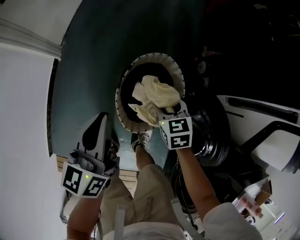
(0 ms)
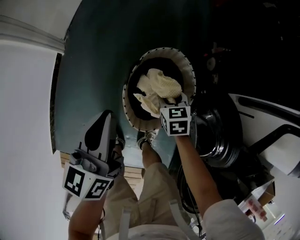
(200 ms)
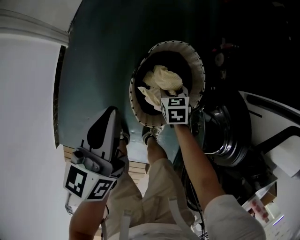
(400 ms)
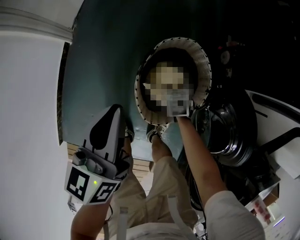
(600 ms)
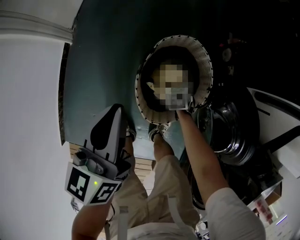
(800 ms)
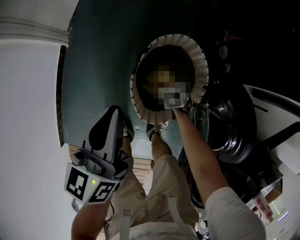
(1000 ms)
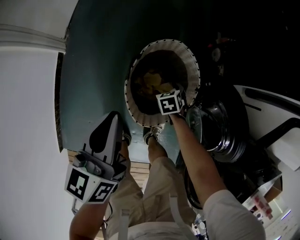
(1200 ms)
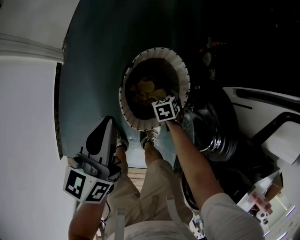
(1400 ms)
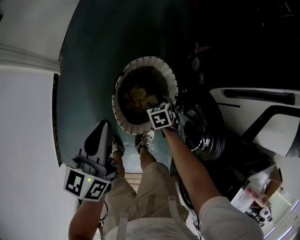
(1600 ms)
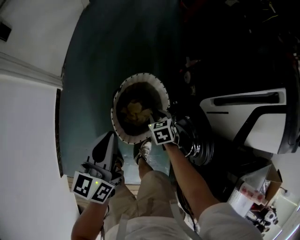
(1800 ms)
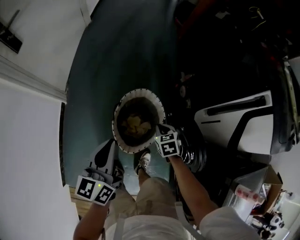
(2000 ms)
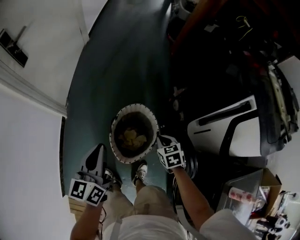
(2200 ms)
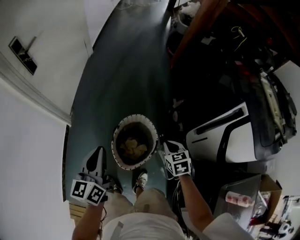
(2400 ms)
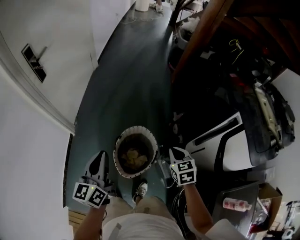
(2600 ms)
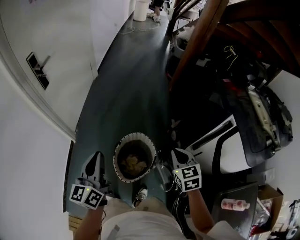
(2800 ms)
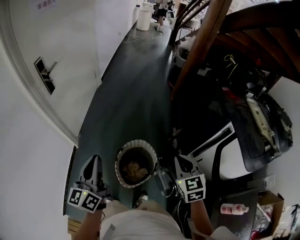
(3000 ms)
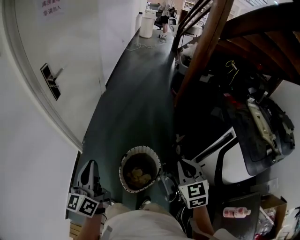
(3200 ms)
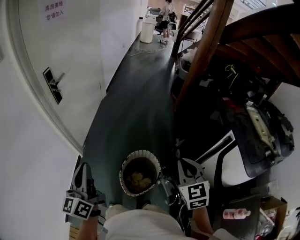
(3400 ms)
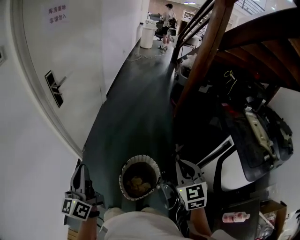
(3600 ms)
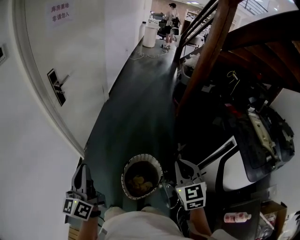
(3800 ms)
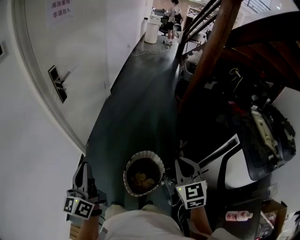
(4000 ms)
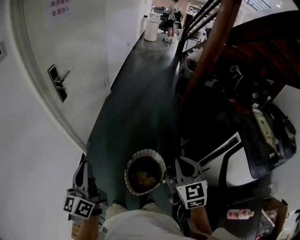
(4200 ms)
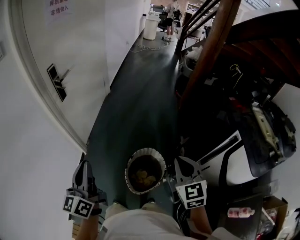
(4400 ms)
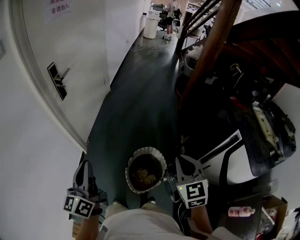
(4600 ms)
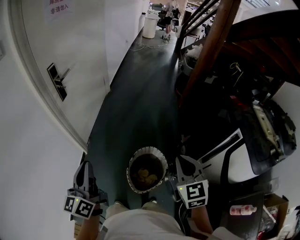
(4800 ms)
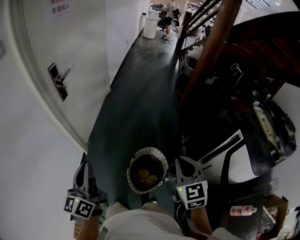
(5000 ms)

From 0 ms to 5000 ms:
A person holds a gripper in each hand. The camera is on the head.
From 0 ms to 1600 ms: The right gripper moves downward, about 10 cm.
From 1600 ms to 3400 ms: The right gripper heads upward, covering about 60 cm, tips its fingers upward by some 50 degrees, and closes its fingers, while the left gripper shifts some 35 cm upward, and changes its angle by approximately 30 degrees.
From 3400 ms to 5000 ms: The two grippers go some 5 cm to the left.

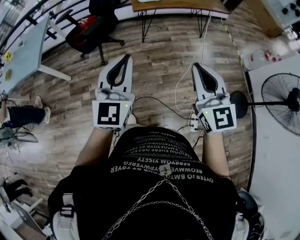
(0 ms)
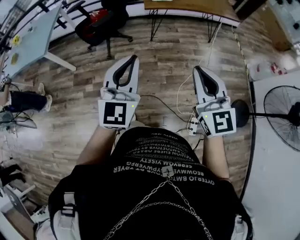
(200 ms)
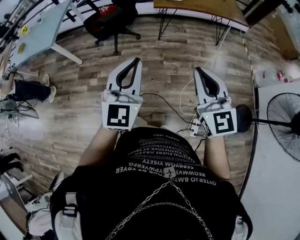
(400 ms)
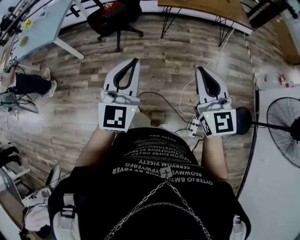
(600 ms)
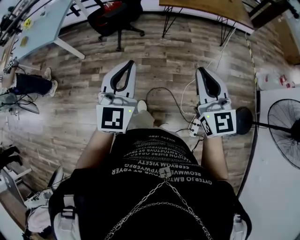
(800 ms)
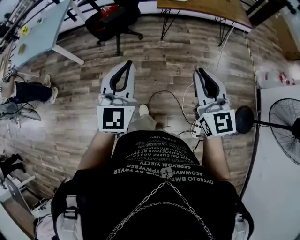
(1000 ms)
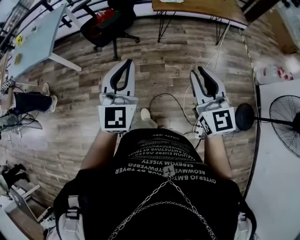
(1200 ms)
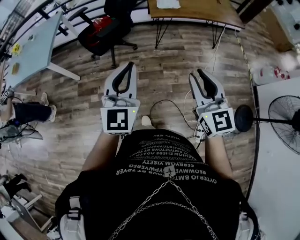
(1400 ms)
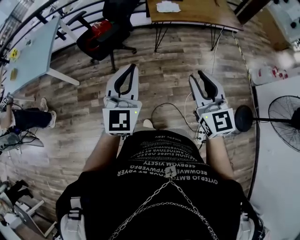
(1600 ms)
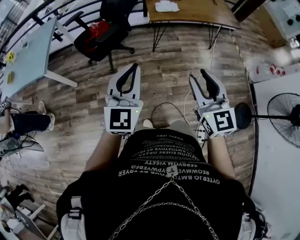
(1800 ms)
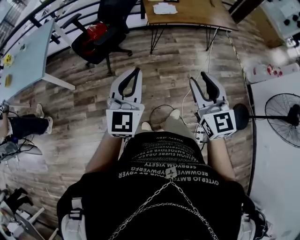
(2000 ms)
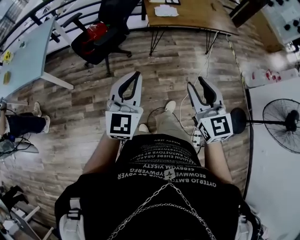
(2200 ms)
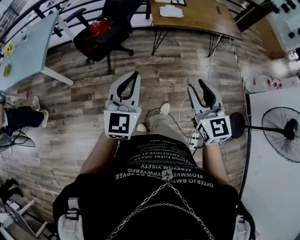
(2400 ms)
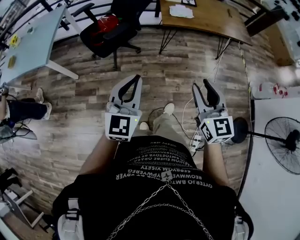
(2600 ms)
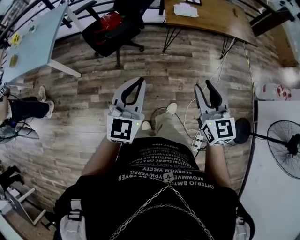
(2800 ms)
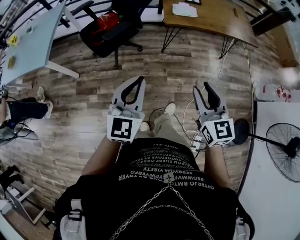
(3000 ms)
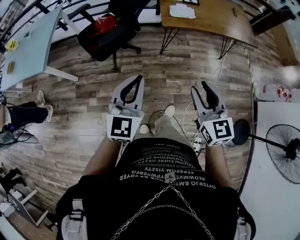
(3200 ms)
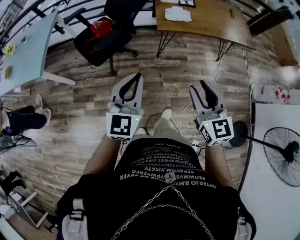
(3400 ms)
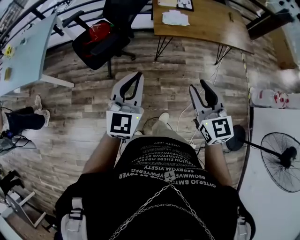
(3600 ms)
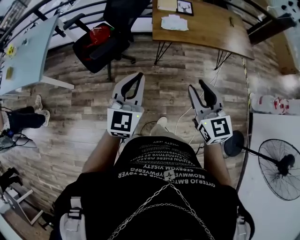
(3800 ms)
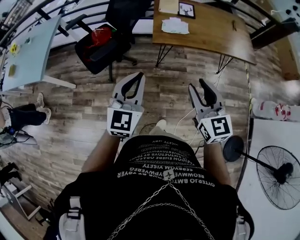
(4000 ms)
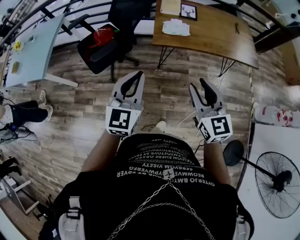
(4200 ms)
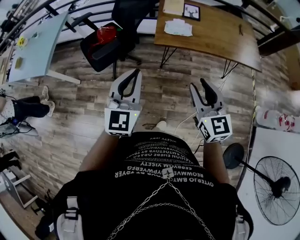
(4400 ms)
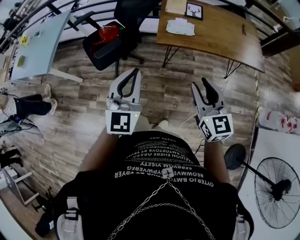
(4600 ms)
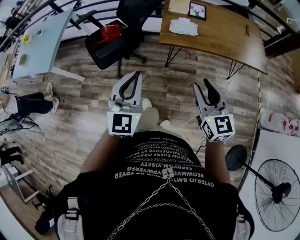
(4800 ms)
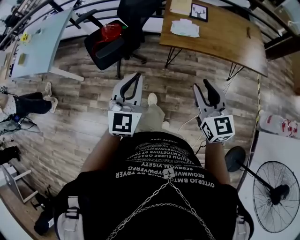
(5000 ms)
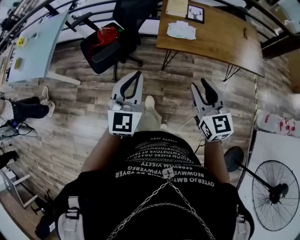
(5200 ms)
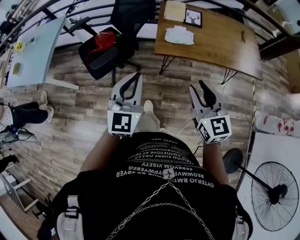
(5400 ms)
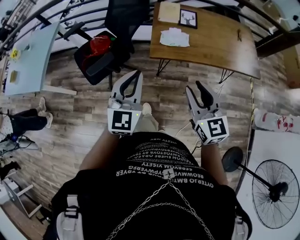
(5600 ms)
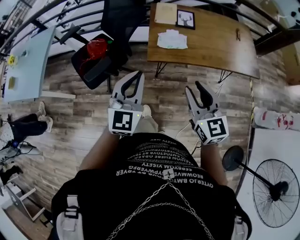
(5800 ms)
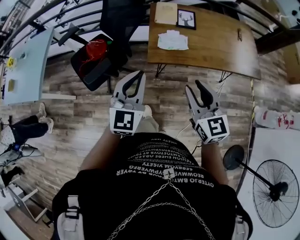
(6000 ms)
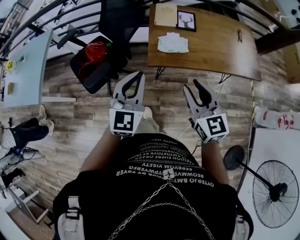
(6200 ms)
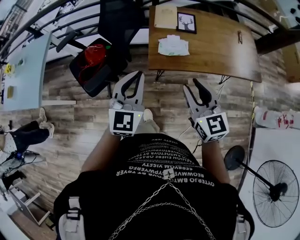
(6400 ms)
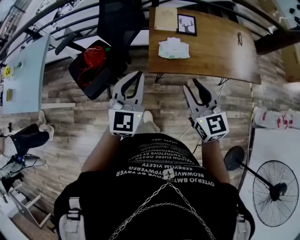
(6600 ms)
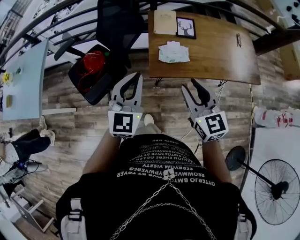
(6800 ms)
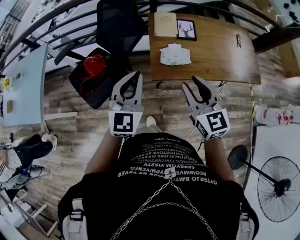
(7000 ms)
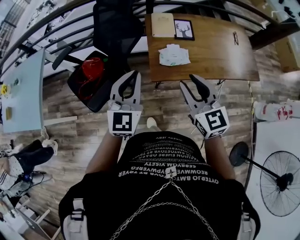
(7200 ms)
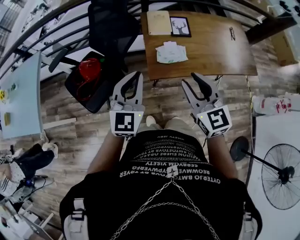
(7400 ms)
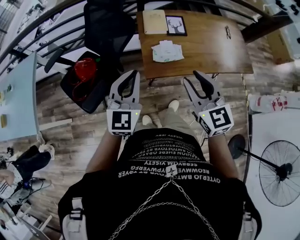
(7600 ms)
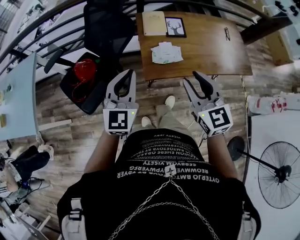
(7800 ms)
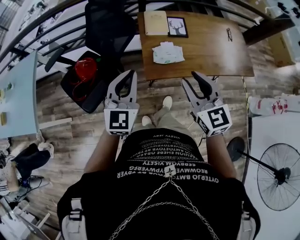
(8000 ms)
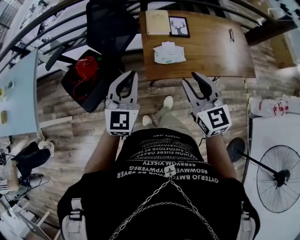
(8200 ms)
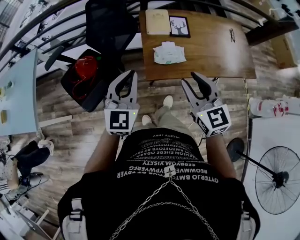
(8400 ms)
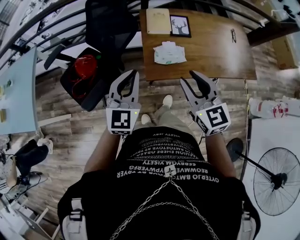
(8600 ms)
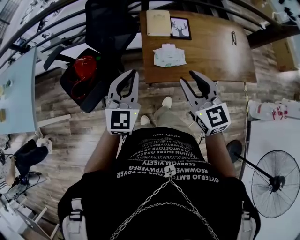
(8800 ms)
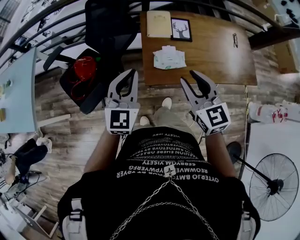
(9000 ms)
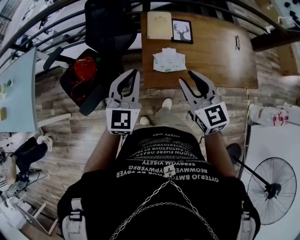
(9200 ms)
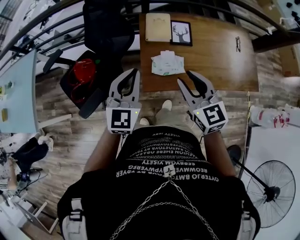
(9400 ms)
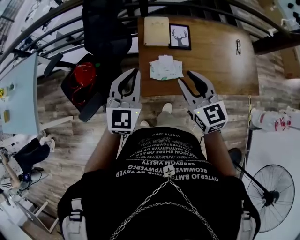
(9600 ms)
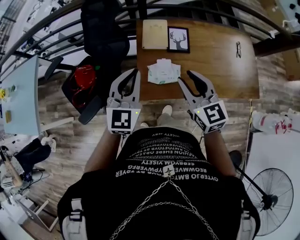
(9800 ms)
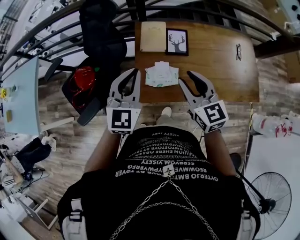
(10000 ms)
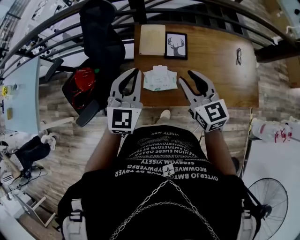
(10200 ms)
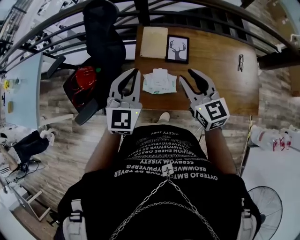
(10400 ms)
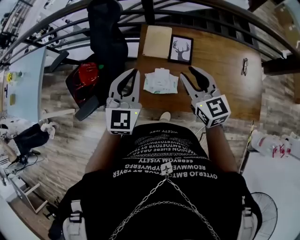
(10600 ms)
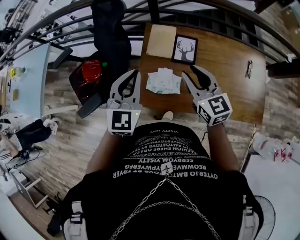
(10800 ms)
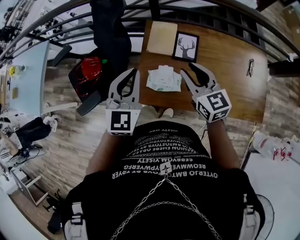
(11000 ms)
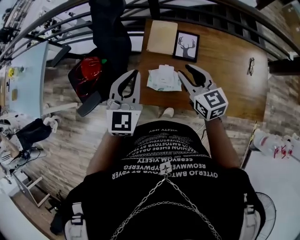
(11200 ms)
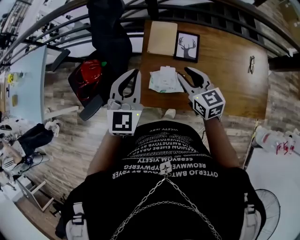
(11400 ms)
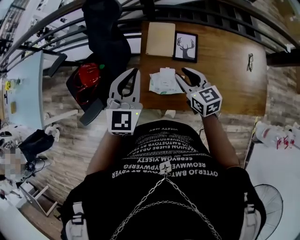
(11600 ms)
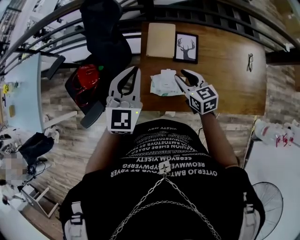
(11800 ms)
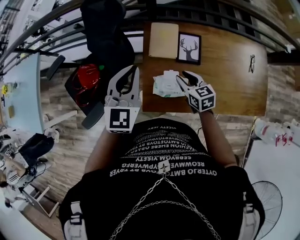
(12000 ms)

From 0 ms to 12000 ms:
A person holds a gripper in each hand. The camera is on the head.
From 0 ms to 1600 ms: The grippers both shift forward and to the left by roughly 15 cm. The right gripper opens its fingers.
From 1600 ms to 3000 ms: The grippers both shift forward and downward by roughly 10 cm.
From 3000 ms to 4400 ms: The two grippers go roughly 25 cm forward and to the right.
From 4400 ms to 6000 ms: Both grippers move forward, roughly 15 cm.
From 6000 ms to 7600 ms: Both grippers travel together forward and to the left, approximately 15 cm.
From 7600 ms to 9000 ms: Both grippers move forward, about 5 cm.
From 9000 ms to 10400 ms: The left gripper goes some 20 cm to the right and forward, while the right gripper travels forward and to the right by about 20 cm.
From 10400 ms to 12000 ms: The right gripper travels downward and forward by some 20 cm, and changes its angle by roughly 20 degrees; the left gripper moves forward, roughly 10 cm.

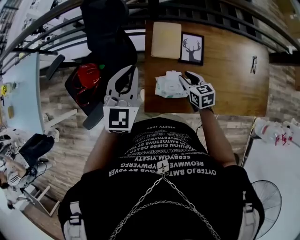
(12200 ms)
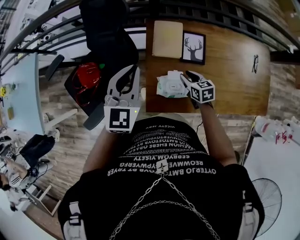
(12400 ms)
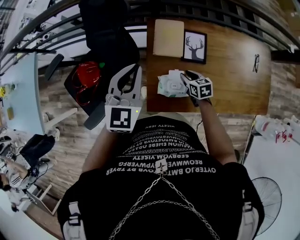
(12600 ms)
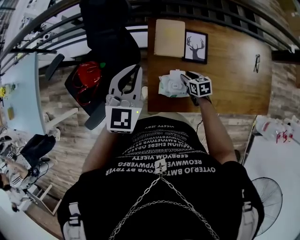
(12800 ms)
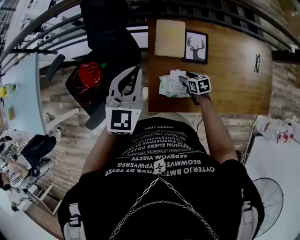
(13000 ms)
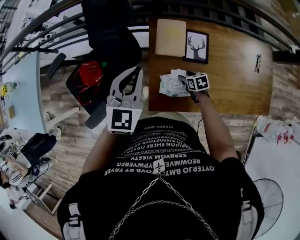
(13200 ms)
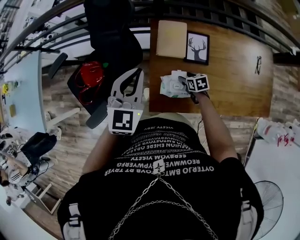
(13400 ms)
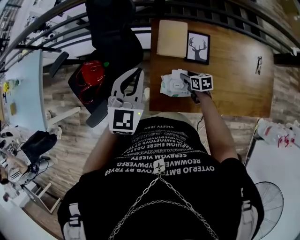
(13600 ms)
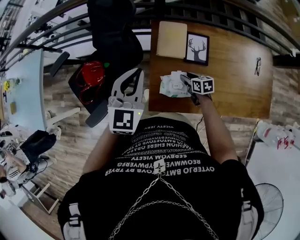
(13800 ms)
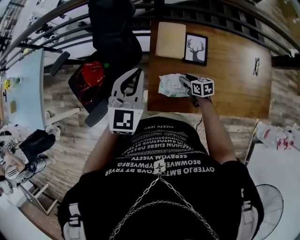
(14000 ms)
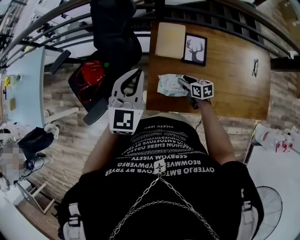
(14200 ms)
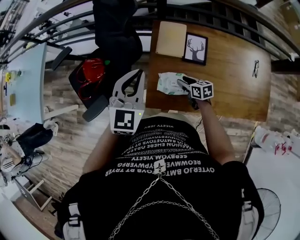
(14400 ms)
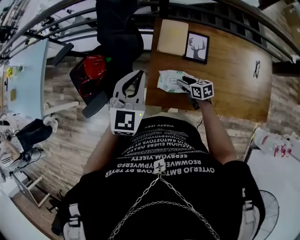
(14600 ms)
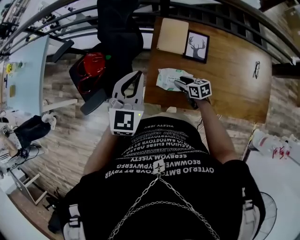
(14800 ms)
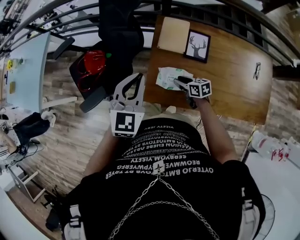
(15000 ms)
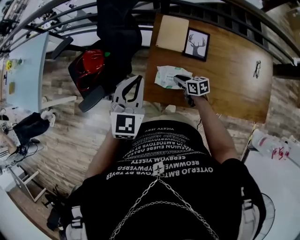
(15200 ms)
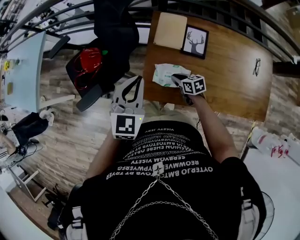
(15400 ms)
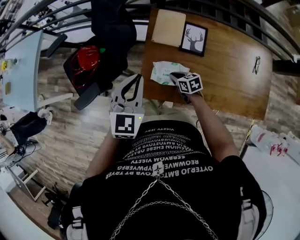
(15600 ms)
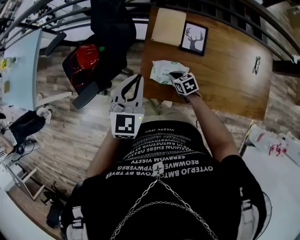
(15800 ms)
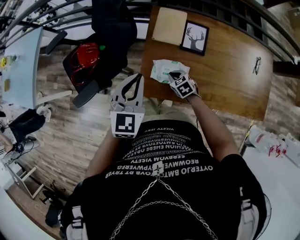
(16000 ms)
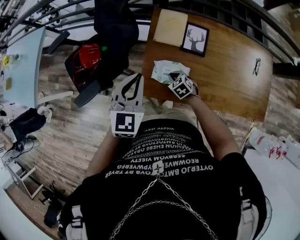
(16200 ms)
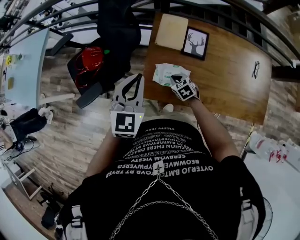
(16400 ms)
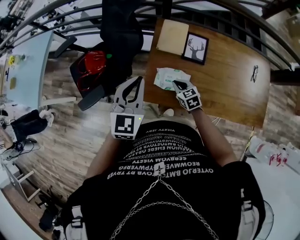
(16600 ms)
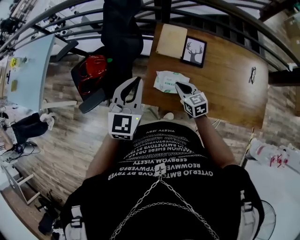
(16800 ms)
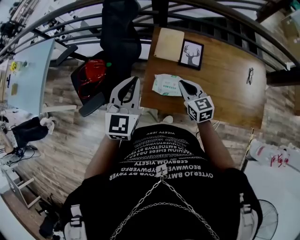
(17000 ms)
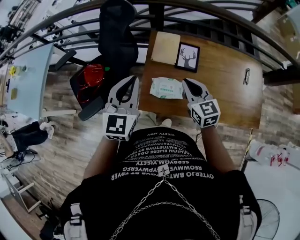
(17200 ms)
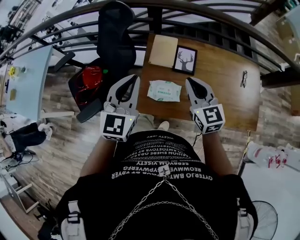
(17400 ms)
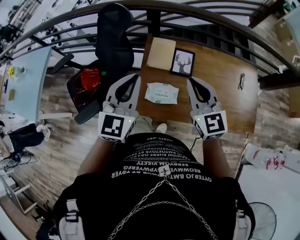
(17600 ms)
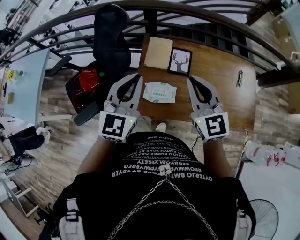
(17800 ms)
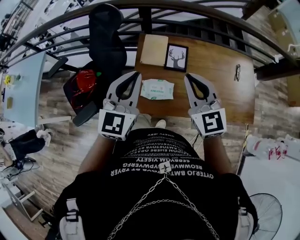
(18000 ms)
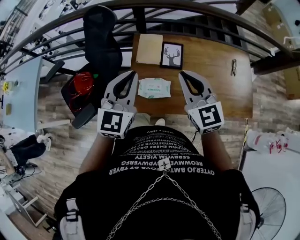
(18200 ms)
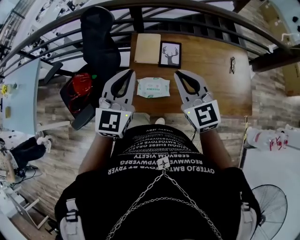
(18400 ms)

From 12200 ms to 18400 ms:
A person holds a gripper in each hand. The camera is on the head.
From 12200 ms to 13800 ms: The right gripper travels downward by approximately 10 cm.
From 13800 ms to 15400 ms: The left gripper heads backward, covering roughly 10 cm. The right gripper travels to the left and backward by roughly 10 cm, and closes up.
From 15400 ms to 16800 ms: The right gripper travels upward by roughly 10 cm, and changes its angle by some 30 degrees.
From 16800 ms to 18400 ms: The right gripper is displaced upward by approximately 25 cm, and changes its angle by about 30 degrees. Meanwhile the left gripper goes approximately 10 cm upward and to the right.
